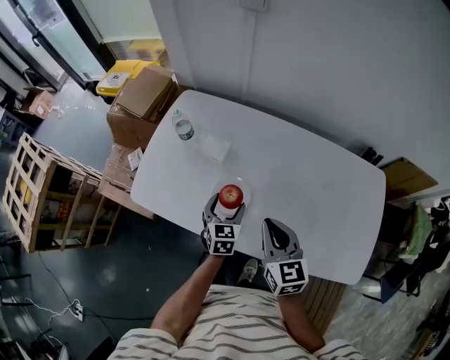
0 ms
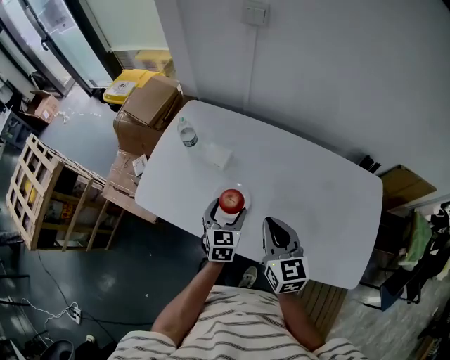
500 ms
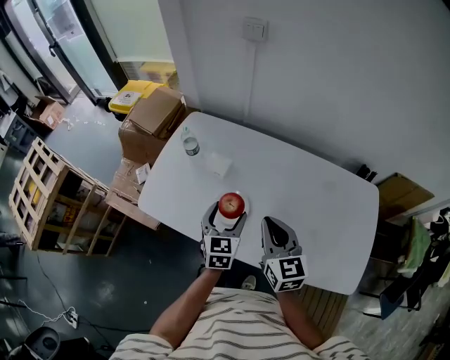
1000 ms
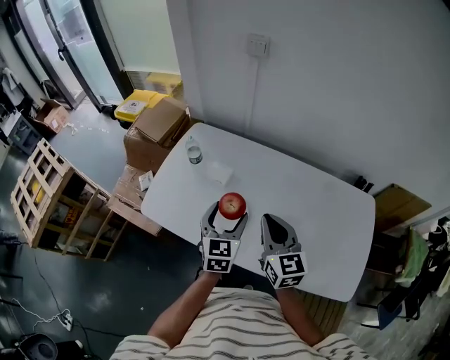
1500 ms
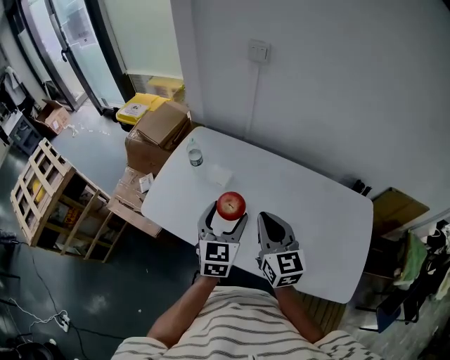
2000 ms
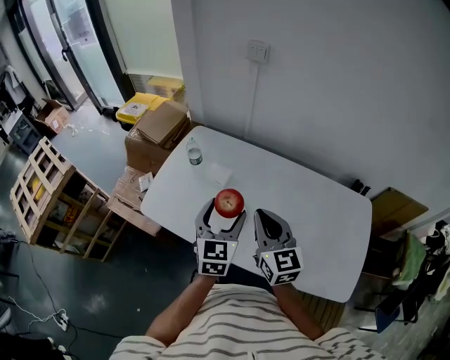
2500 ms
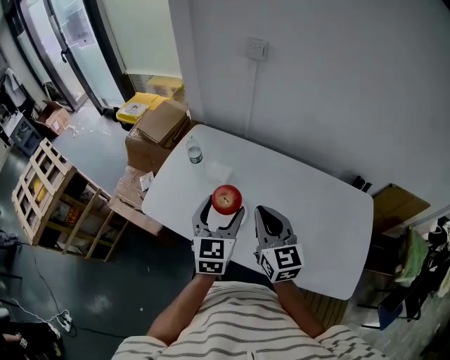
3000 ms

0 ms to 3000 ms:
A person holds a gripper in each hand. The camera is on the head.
0 ms to 1500 ms: The left gripper travels upward by approximately 15 cm, while the right gripper goes approximately 10 cm upward.
1500 ms to 3000 ms: The left gripper is displaced upward by roughly 5 cm.

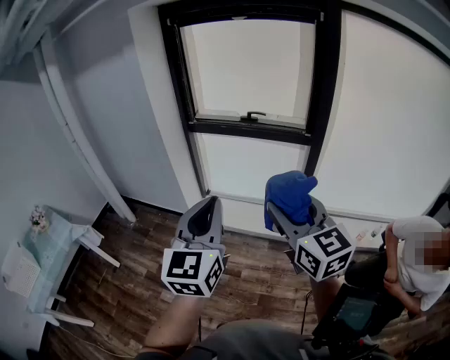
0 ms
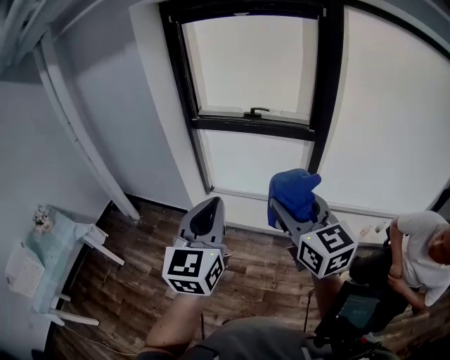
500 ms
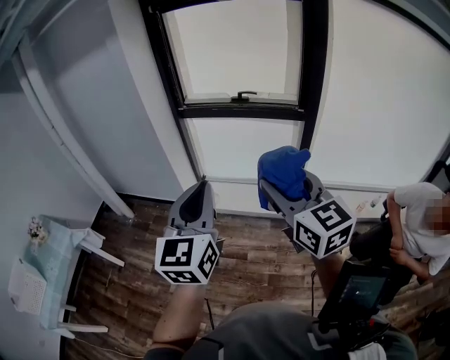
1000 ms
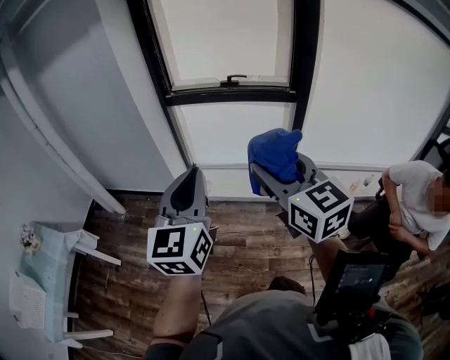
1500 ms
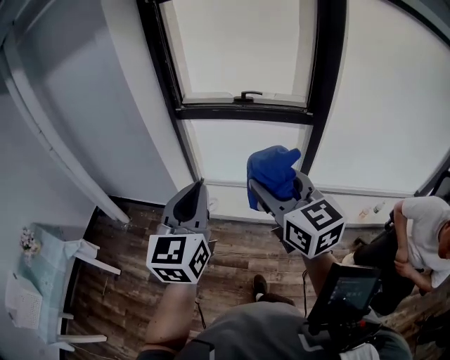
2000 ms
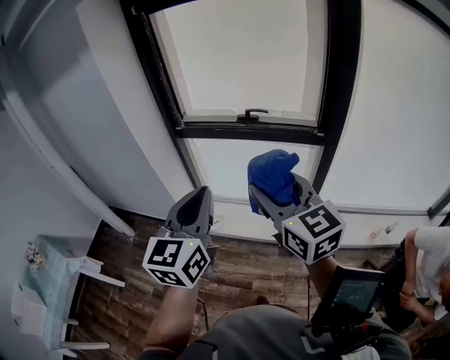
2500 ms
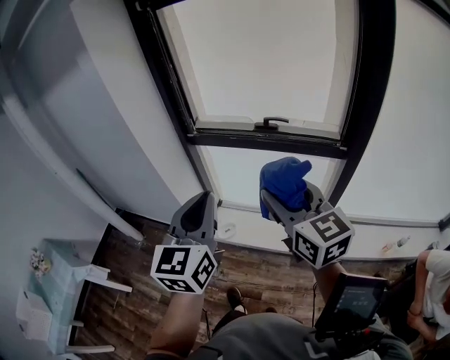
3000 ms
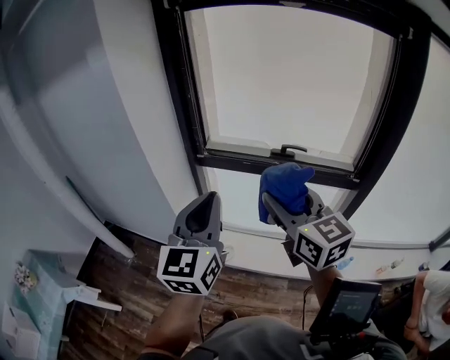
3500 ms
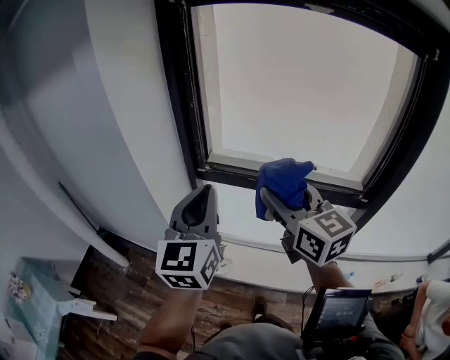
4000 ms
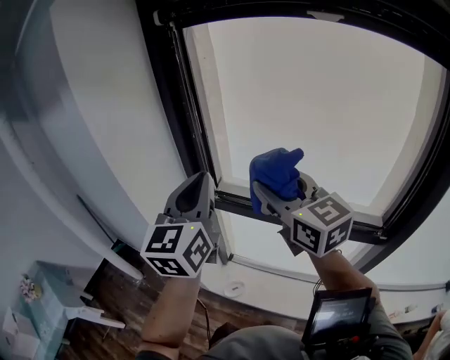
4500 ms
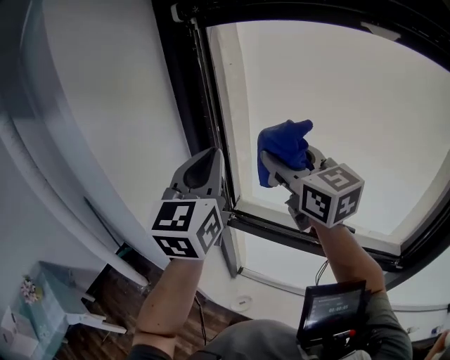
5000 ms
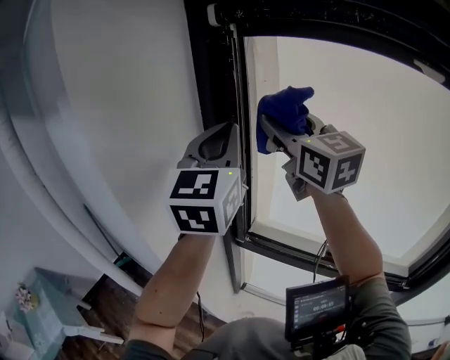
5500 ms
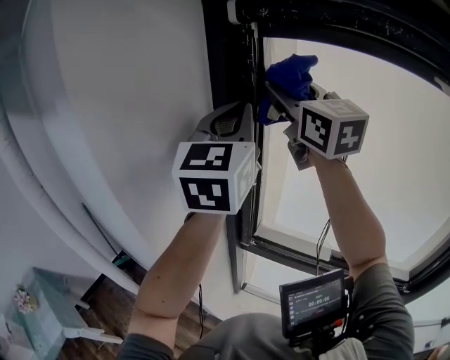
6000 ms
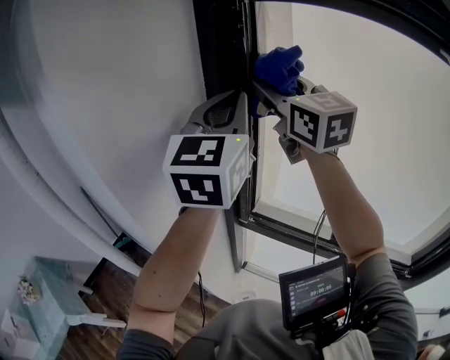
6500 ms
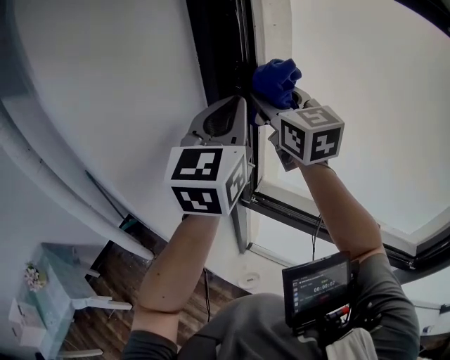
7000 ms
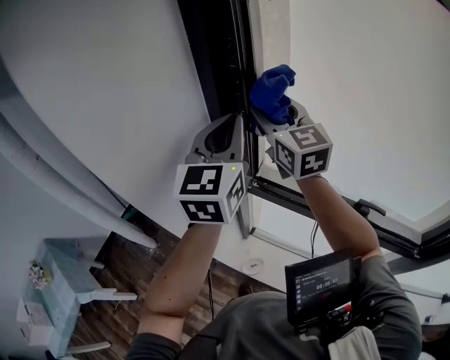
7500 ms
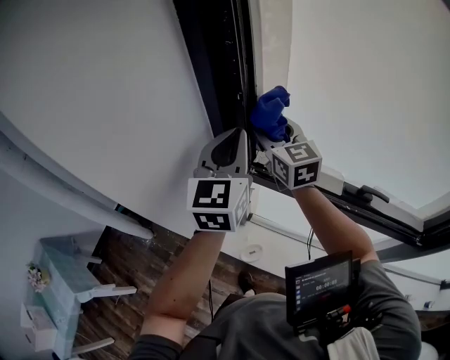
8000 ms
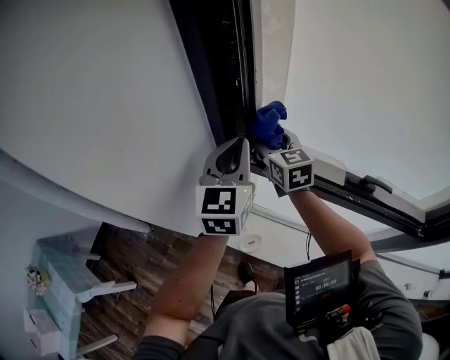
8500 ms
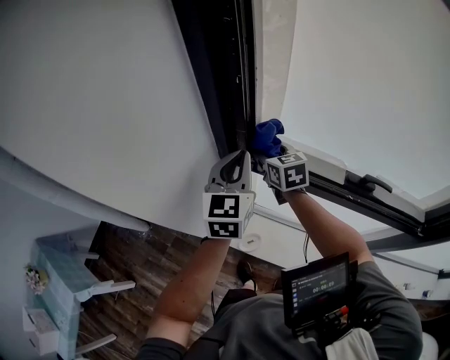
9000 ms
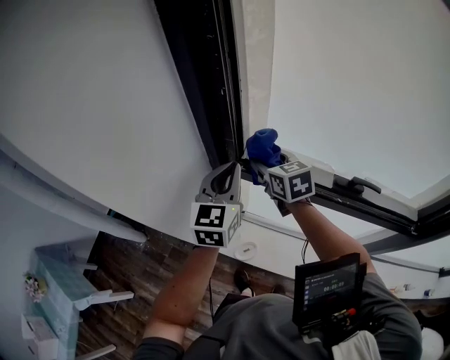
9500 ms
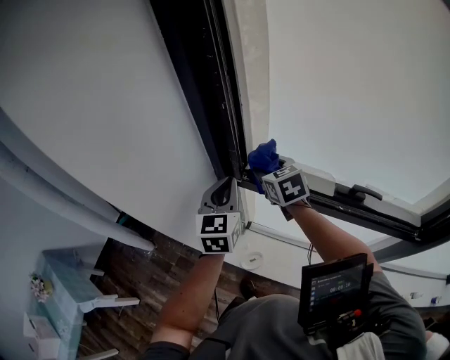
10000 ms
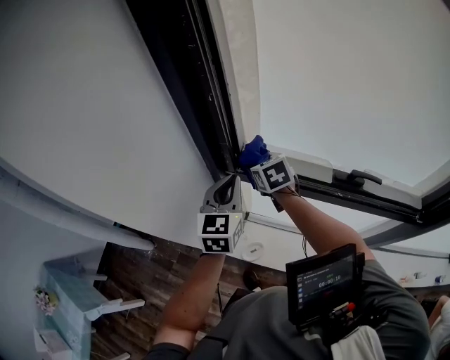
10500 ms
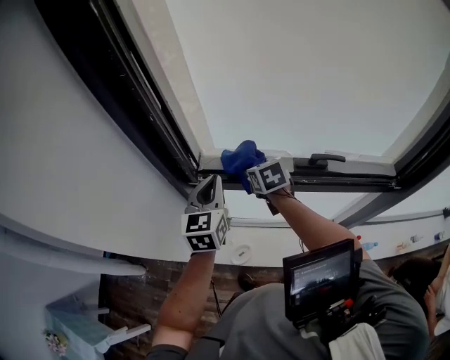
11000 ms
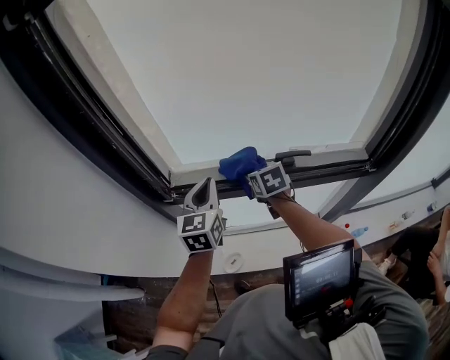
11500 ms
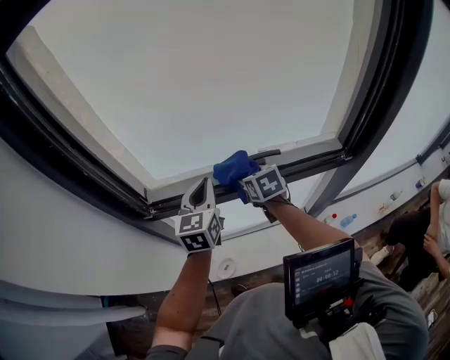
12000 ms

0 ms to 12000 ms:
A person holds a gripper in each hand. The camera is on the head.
0 ms to 2000 ms: Both grippers travel together forward and to the left, some 15 cm.
2000 ms to 4000 ms: Both grippers are carried forward, approximately 50 cm.
4000 ms to 6000 ms: Both grippers move forward and upward, roughly 40 cm. The right gripper swivels approximately 20 degrees.
6000 ms to 8000 ms: Both grippers move downward, approximately 30 cm. The right gripper rotates roughly 20 degrees.
8000 ms to 10000 ms: The two grippers go approximately 10 cm downward. The right gripper rotates some 30 degrees.
10000 ms to 12000 ms: The right gripper changes place by roughly 30 cm, and swivels about 40 degrees; the left gripper ends up roughly 25 cm from where it was, and changes its angle by roughly 30 degrees.

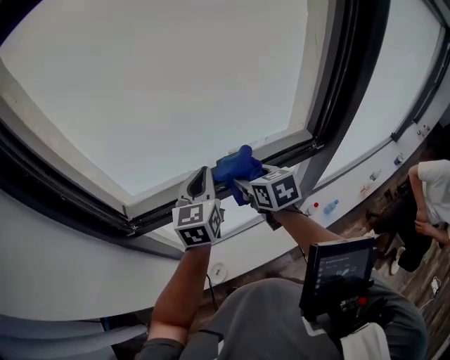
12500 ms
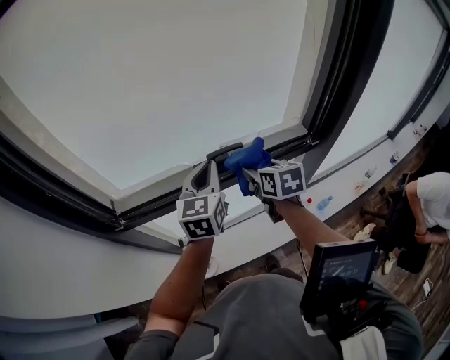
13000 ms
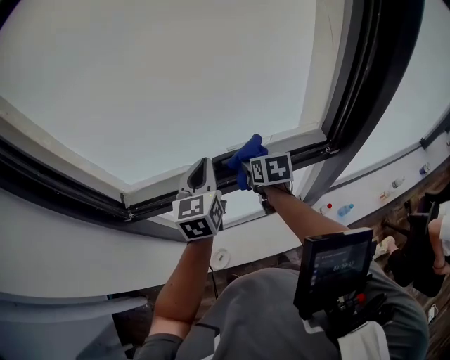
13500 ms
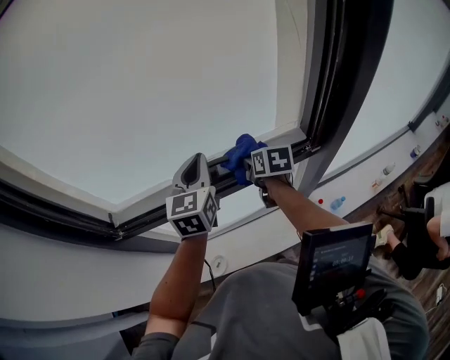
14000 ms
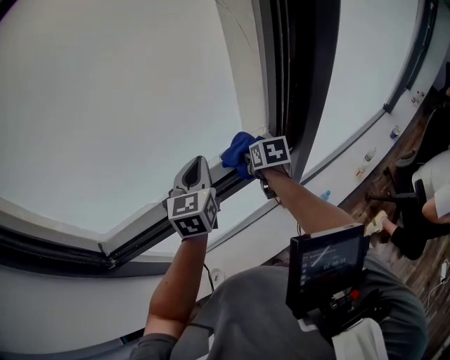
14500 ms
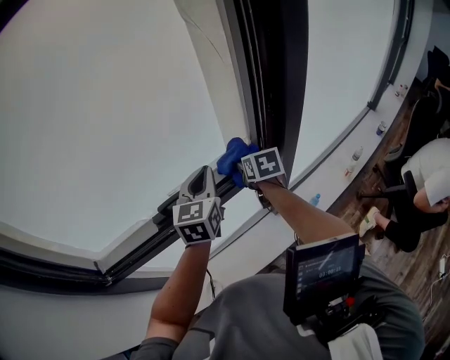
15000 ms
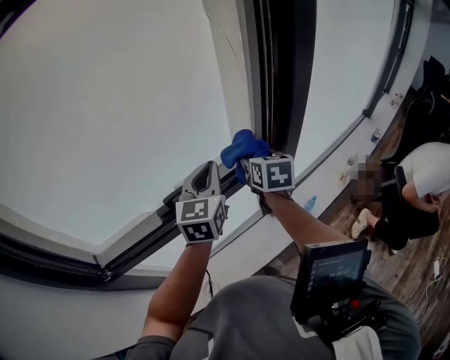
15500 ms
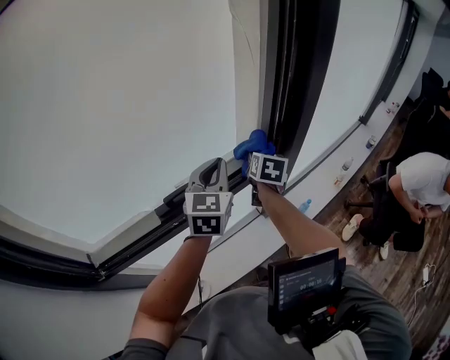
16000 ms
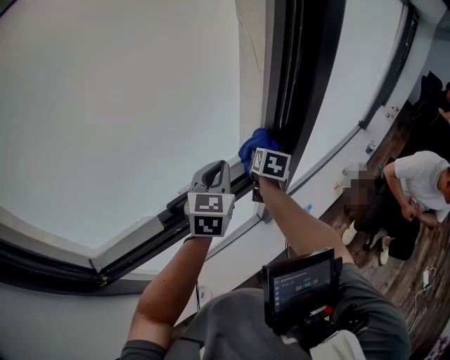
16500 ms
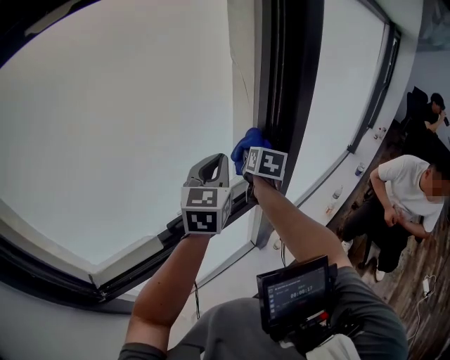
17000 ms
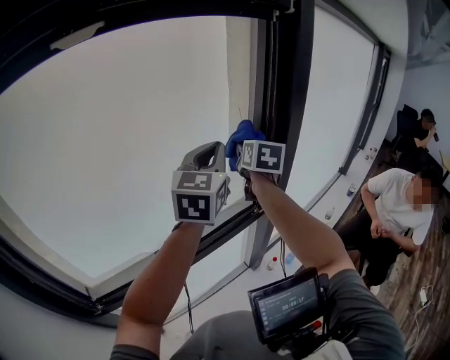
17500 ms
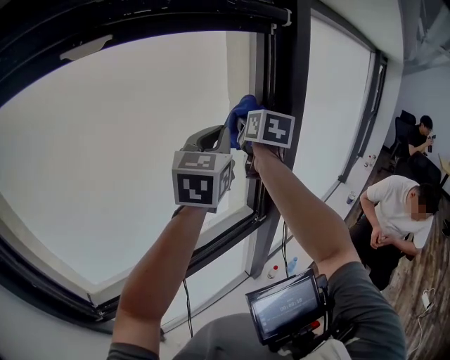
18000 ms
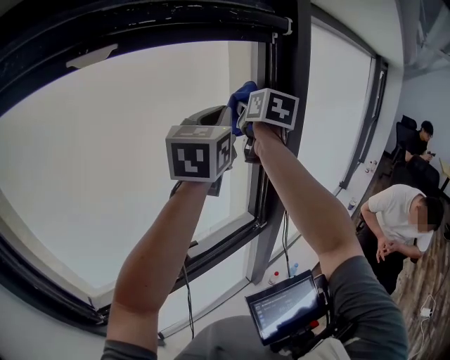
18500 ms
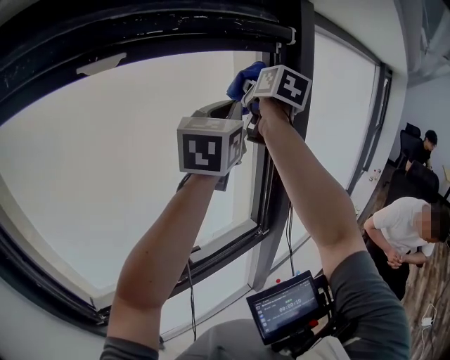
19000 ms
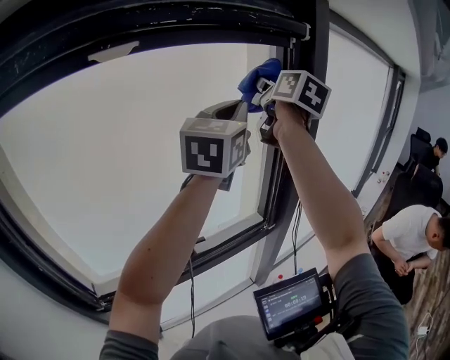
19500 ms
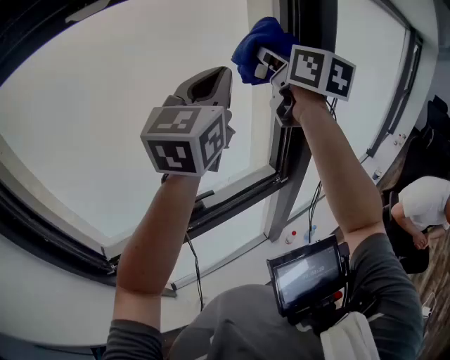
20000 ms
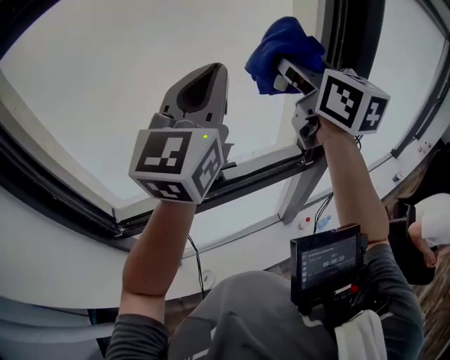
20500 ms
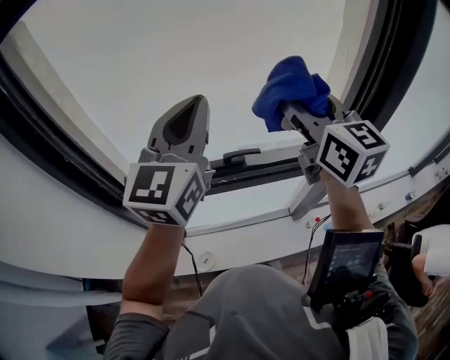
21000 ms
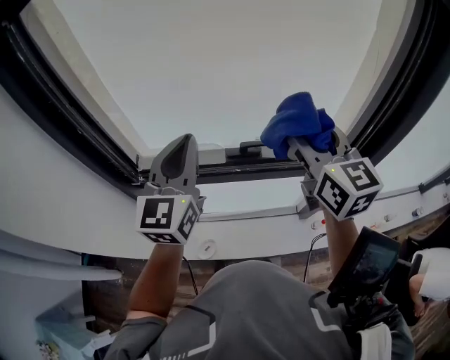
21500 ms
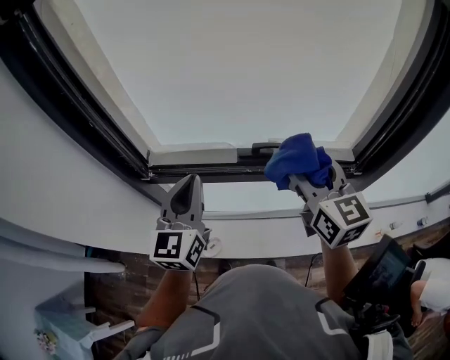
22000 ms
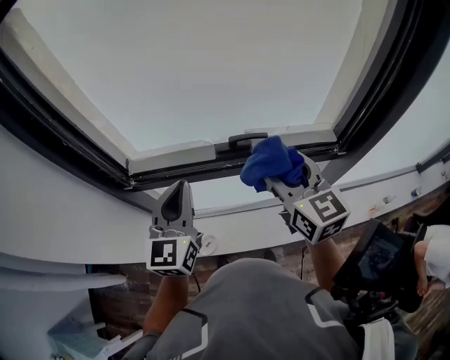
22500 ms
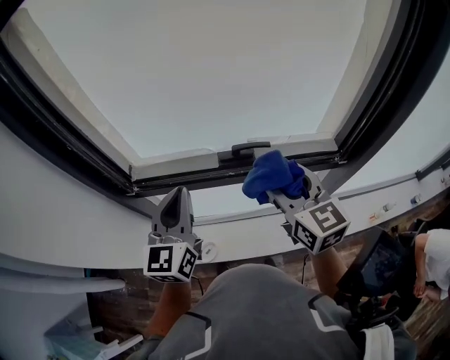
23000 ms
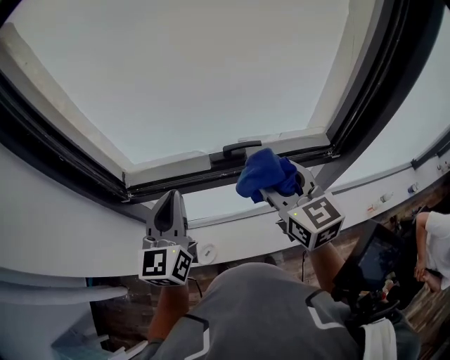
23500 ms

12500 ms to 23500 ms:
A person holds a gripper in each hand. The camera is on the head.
12500 ms to 14500 ms: The left gripper moves to the right and forward, roughly 20 cm; the right gripper travels to the right, forward and downward by roughly 25 cm, and changes its angle by some 20 degrees.
14500 ms to 16000 ms: The right gripper goes approximately 10 cm to the right and upward, and rotates roughly 30 degrees. Meanwhile the left gripper is displaced to the right by some 5 cm.
16000 ms to 18000 ms: Both grippers move upward, roughly 30 cm. The left gripper swivels some 20 degrees. The right gripper swivels about 30 degrees.
18000 ms to 20000 ms: The left gripper is displaced backward by approximately 5 cm. The right gripper is displaced upward and backward by approximately 10 cm, and rotates some 30 degrees.
20000 ms to 21500 ms: The right gripper goes roughly 20 cm downward, and rotates about 30 degrees. The left gripper shifts by about 35 cm, and swivels roughly 40 degrees.
21500 ms to 23500 ms: Both grippers travel together downward, approximately 10 cm.
